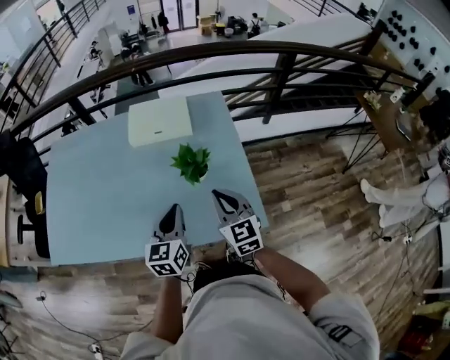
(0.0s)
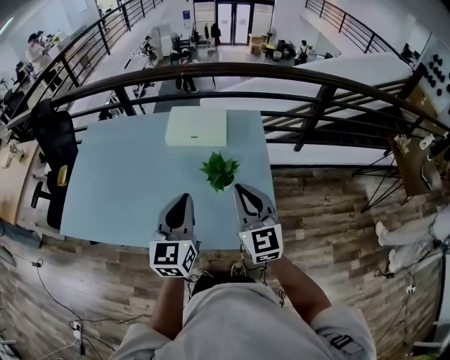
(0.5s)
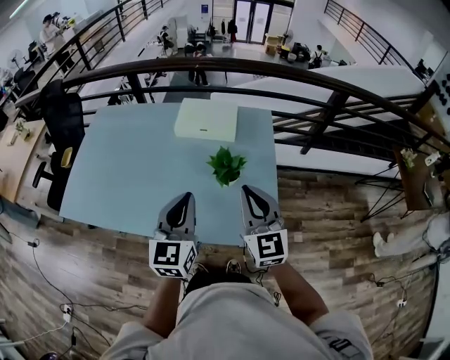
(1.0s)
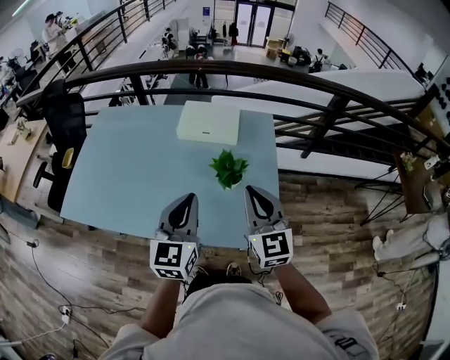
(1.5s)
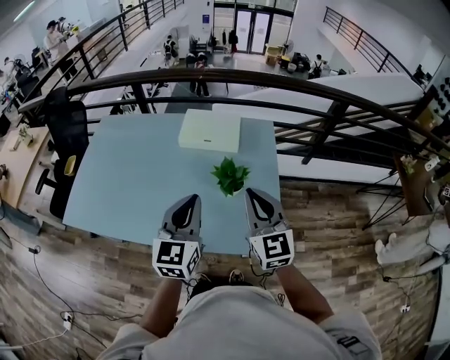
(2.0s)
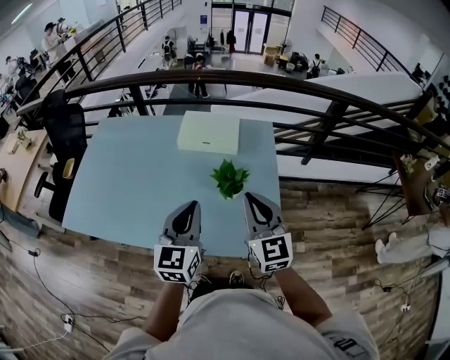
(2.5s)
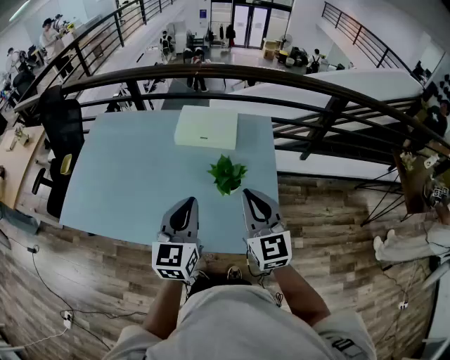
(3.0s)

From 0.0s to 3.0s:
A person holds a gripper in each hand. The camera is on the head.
From 0.0s to 1.5s: The two grippers go approximately 10 cm upward.
From 1.5s to 3.0s: There are only small adjustments of the grippers.

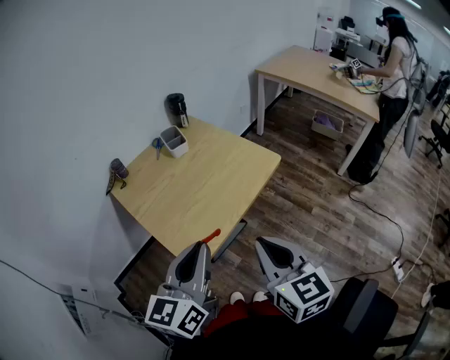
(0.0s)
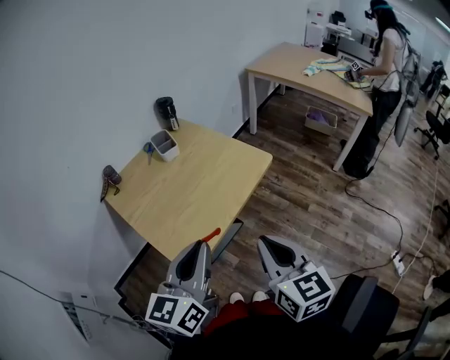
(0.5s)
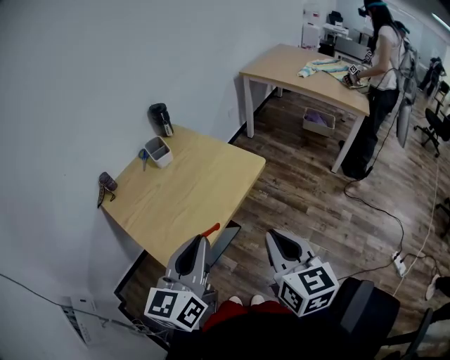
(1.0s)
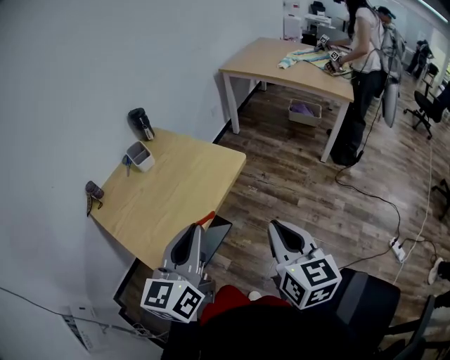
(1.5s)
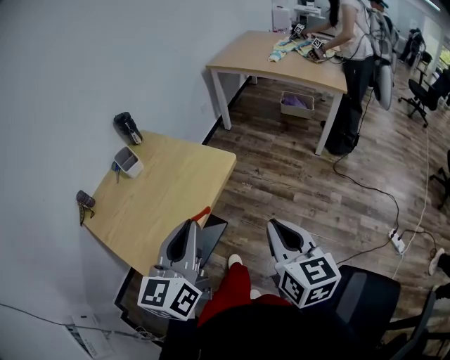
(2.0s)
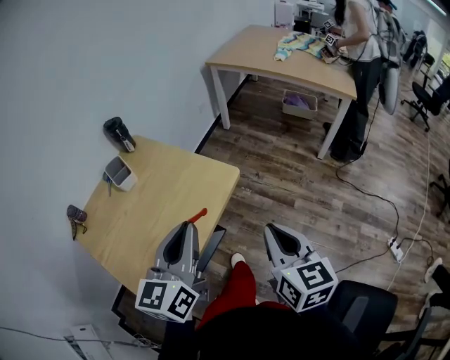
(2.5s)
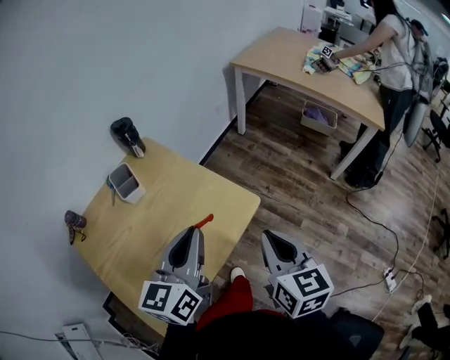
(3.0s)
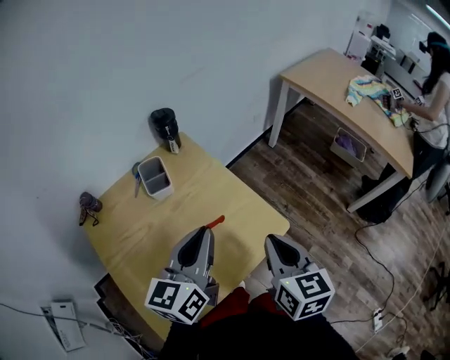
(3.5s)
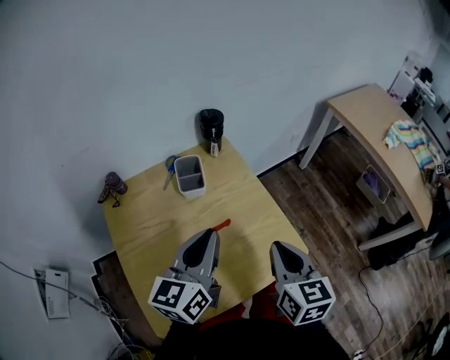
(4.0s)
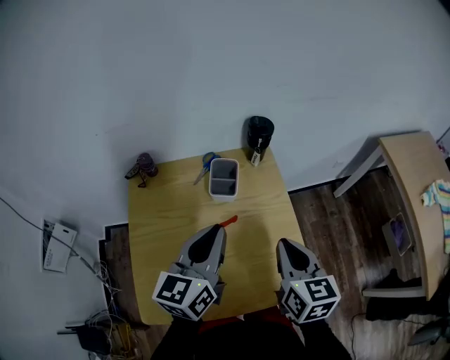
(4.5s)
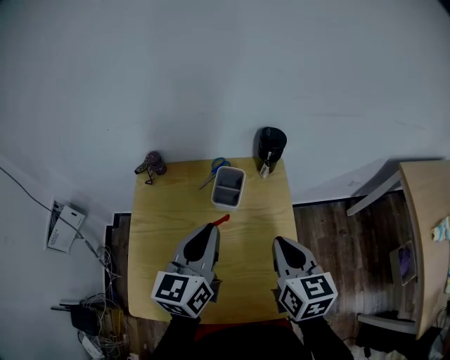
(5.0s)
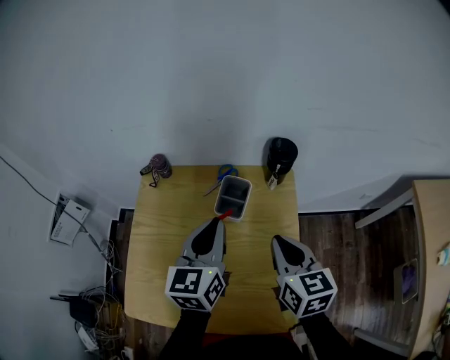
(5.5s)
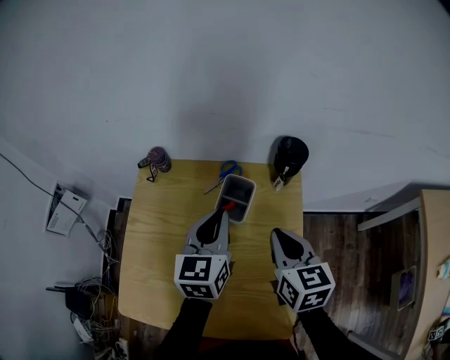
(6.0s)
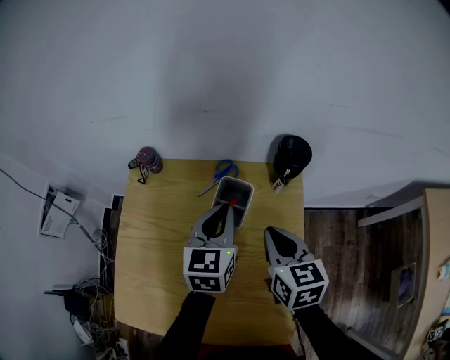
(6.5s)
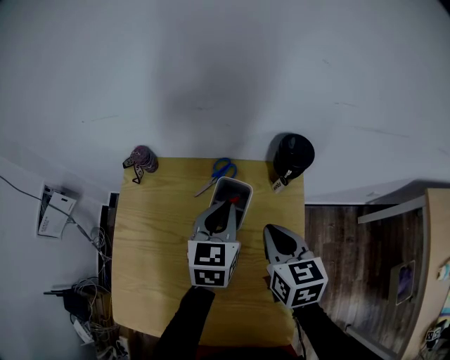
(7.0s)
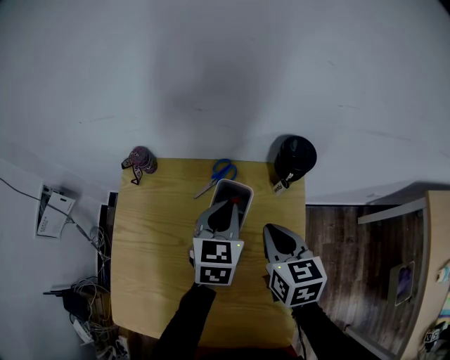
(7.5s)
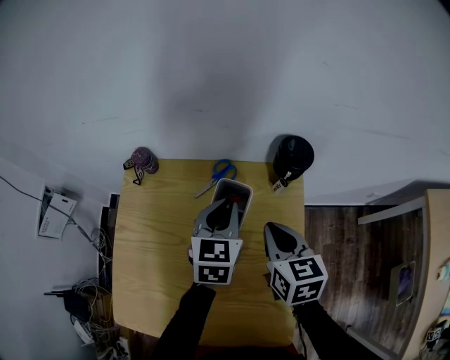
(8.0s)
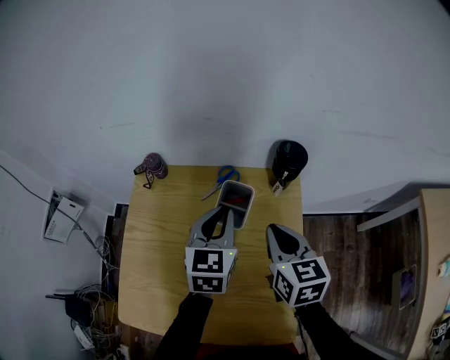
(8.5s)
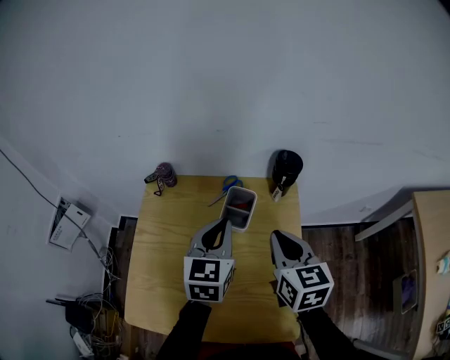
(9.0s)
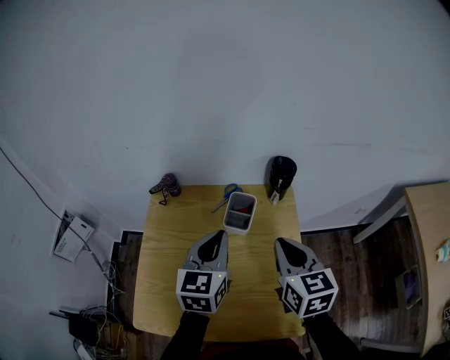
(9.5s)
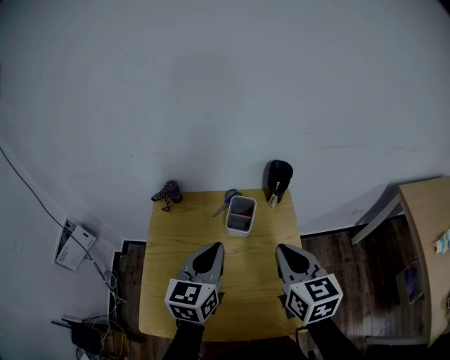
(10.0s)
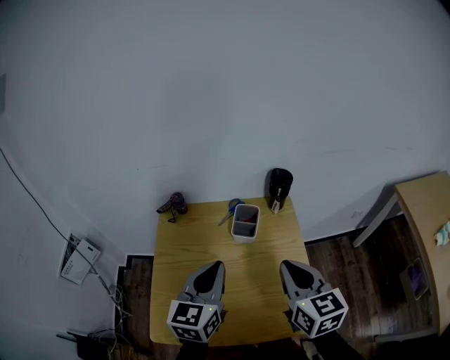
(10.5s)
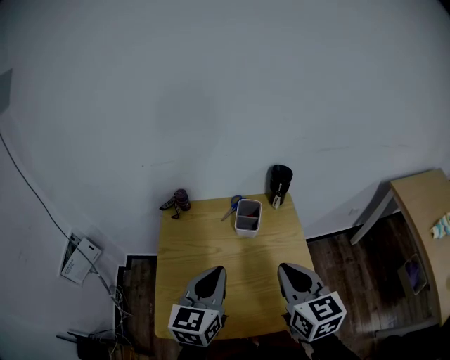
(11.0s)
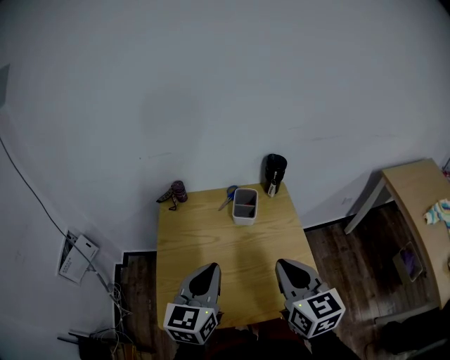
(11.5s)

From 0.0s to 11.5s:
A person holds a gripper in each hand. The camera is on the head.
From 0.0s to 2.0s: The left gripper heads to the right and forward, covering about 15 cm. Meanwhile the right gripper moves to the right, some 20 cm.
From 2.0s to 4.0s: The left gripper ends up some 30 cm from where it was, and swivels some 30 degrees. The right gripper ends up roughly 35 cm from where it was, and changes its angle by about 30 degrees.
From 4.0s to 6.0s: The right gripper shifts by some 25 cm, and turns by about 40 degrees. Meanwhile the left gripper changes place by some 20 cm, and swivels about 40 degrees.
From 6.0s to 7.5s: The grippers both shift downward and forward by some 10 cm.
From 7.5s to 9.5s: The right gripper is displaced upward and backward by approximately 15 cm; the left gripper goes roughly 20 cm backward, upward and to the left.
From 9.5s to 11.5s: Both grippers move backward and to the left, roughly 15 cm.

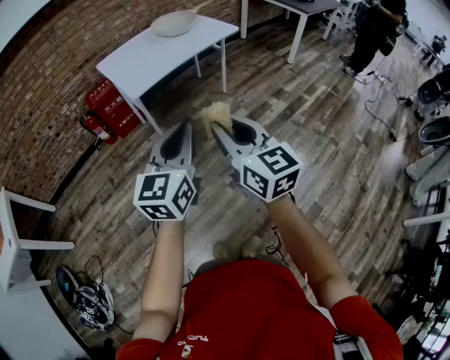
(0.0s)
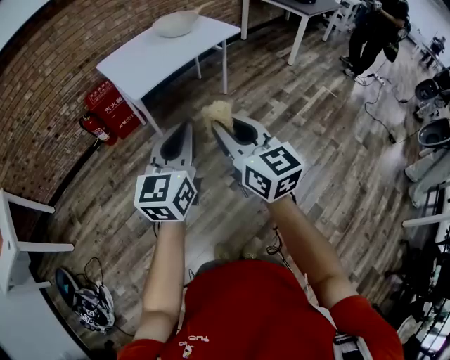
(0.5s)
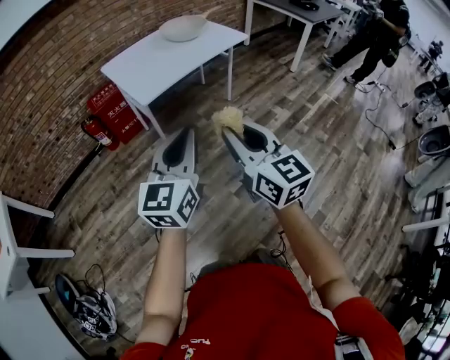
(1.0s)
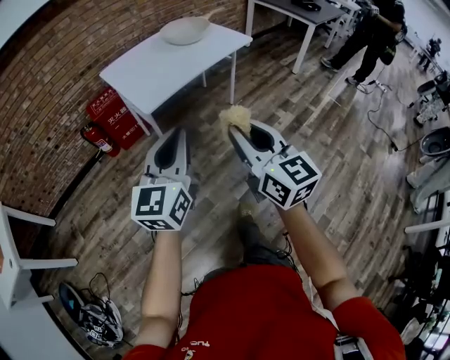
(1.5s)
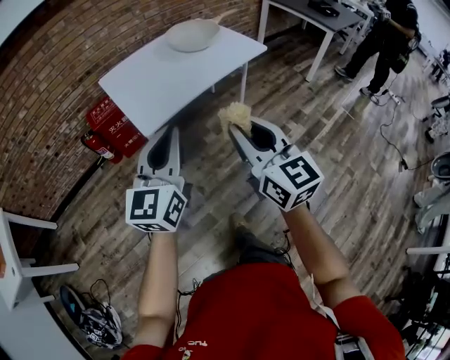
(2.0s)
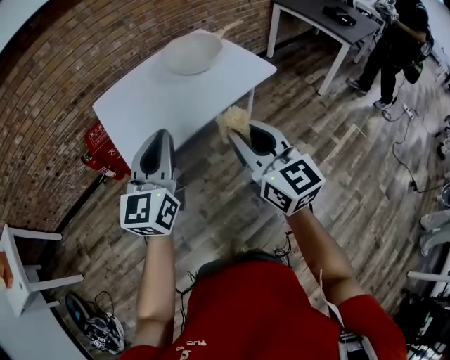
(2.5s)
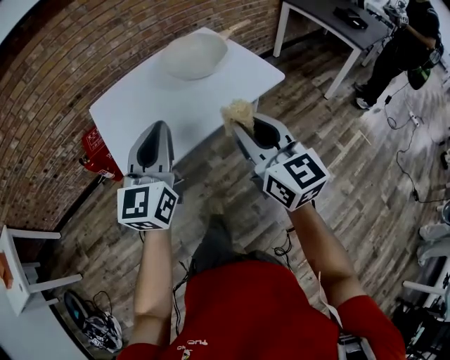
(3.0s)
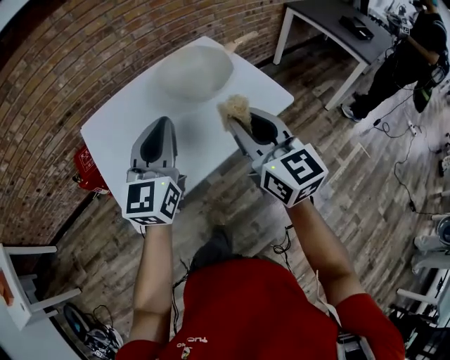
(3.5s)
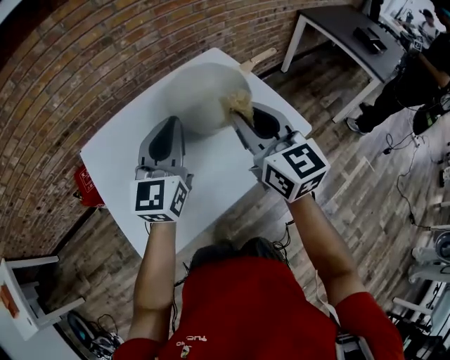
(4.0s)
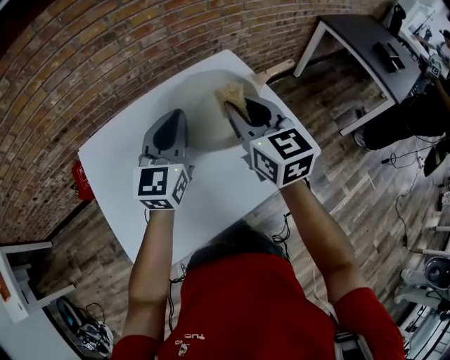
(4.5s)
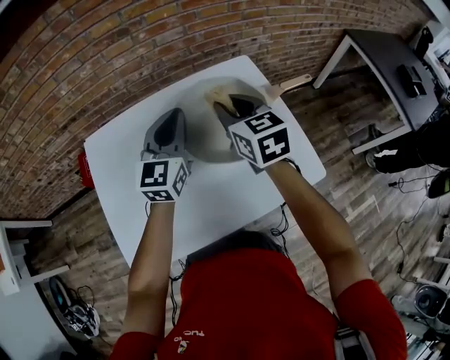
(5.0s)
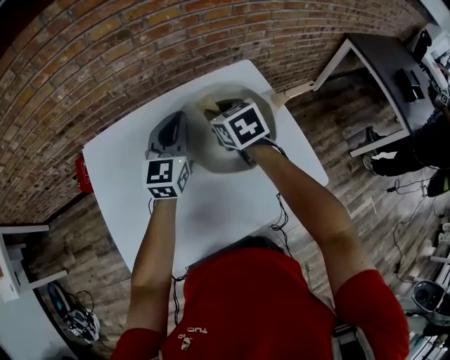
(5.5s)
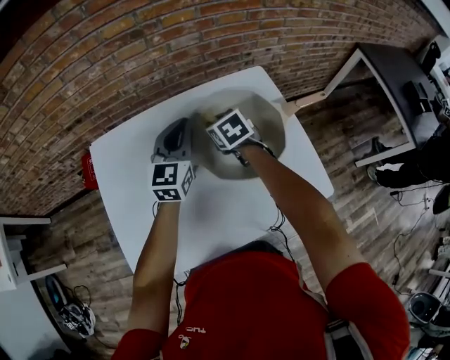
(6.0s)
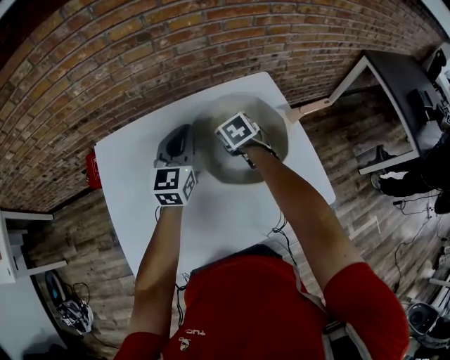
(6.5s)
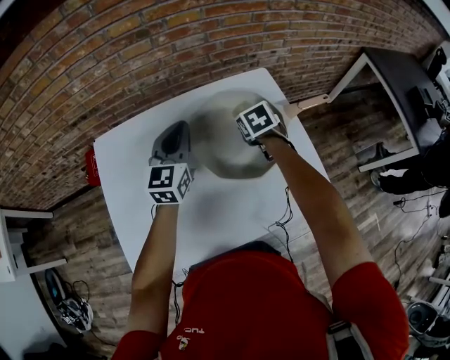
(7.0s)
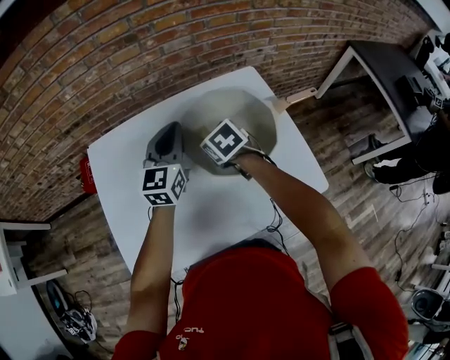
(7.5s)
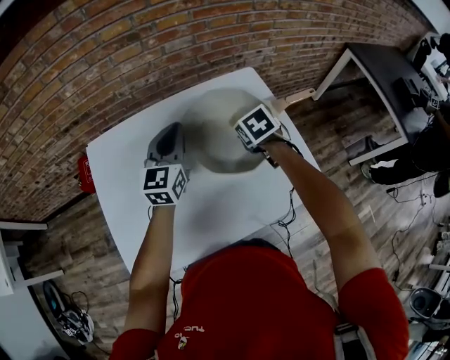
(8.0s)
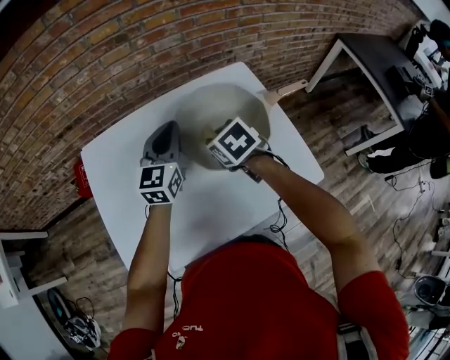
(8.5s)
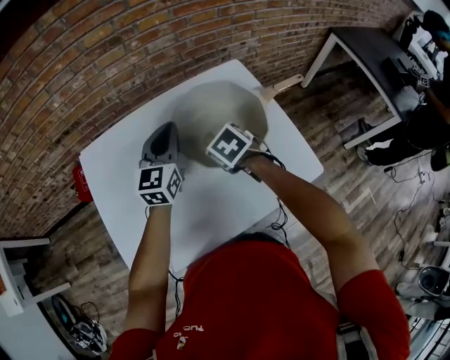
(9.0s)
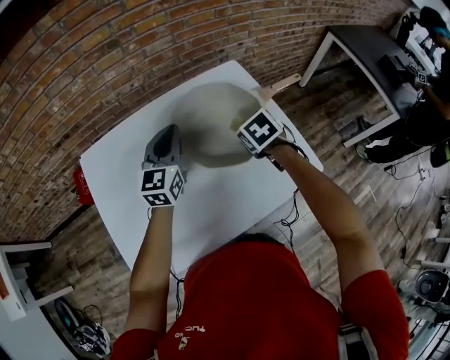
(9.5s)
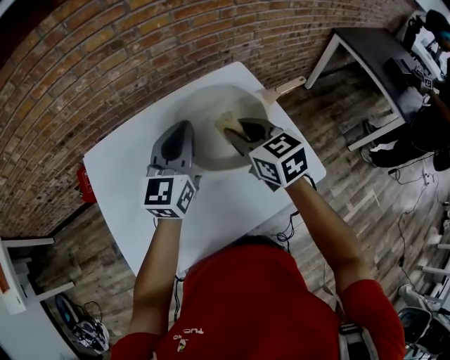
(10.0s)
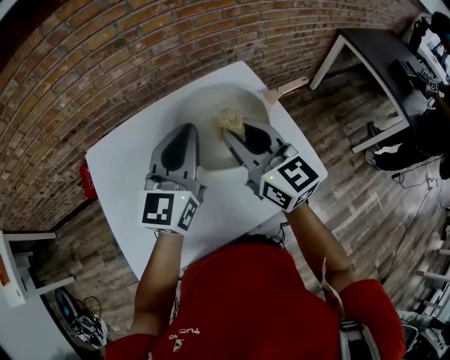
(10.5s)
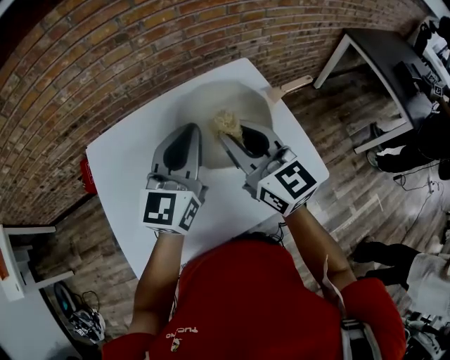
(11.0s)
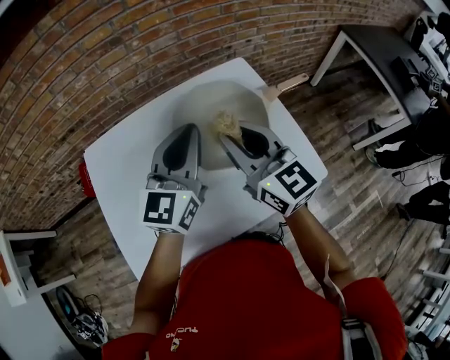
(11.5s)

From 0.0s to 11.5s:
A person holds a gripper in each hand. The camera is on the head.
From 0.0s to 2.0s: The grippers both shift forward by roughly 25 cm.
From 2.0s to 4.0s: Both grippers are carried forward, approximately 60 cm.
From 4.0s to 6.0s: The right gripper heads forward and downward, covering approximately 35 cm, and points its fingers roughly 50 degrees further downward, while the left gripper goes approximately 20 cm forward and downward.
From 6.0s to 7.5s: The right gripper goes roughly 5 cm backward, and reaches about 10 cm to the right, then returns.
From 7.5s to 9.5s: The right gripper goes left and right, approximately 15 cm each way, reversing 2 times.
From 9.5s to 11.5s: The right gripper travels upward by roughly 20 cm, and tips its fingers upward by roughly 60 degrees. The left gripper heads upward, backward and to the right, covering approximately 15 cm.

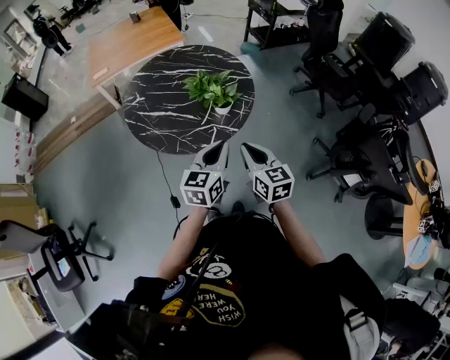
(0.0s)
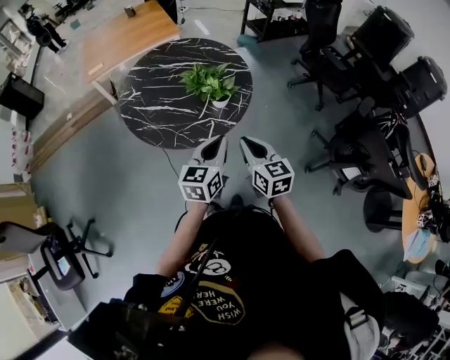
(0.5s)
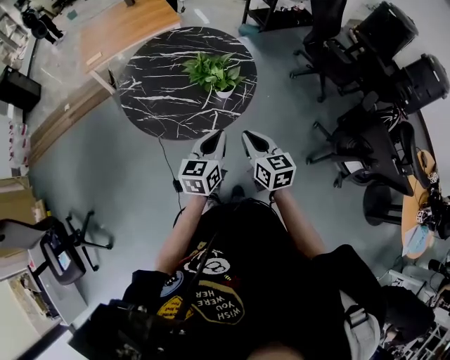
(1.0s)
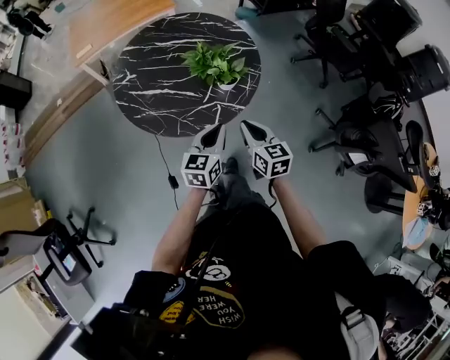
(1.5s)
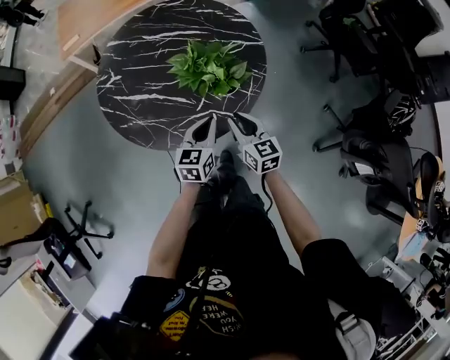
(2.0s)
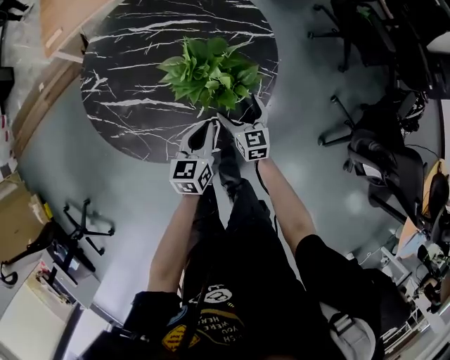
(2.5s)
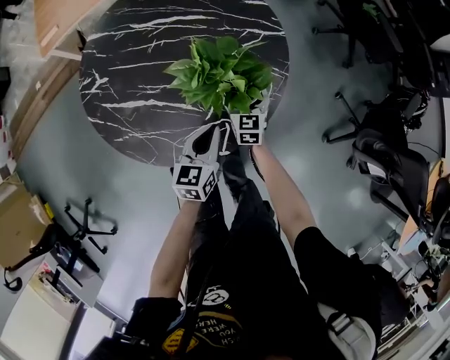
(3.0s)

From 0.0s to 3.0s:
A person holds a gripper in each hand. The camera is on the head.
From 0.0s to 1.5s: The two grippers go about 10 cm downward and forward.
From 1.5s to 3.0s: The right gripper shifts roughly 40 cm forward and downward, and opens up. Meanwhile the left gripper is displaced forward and downward by some 25 cm.
